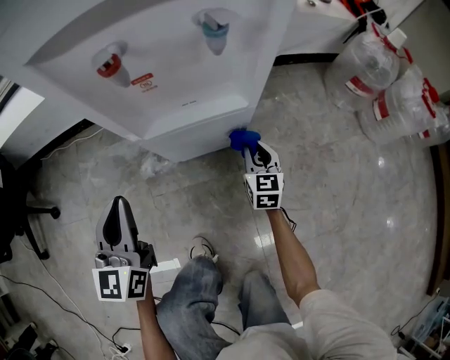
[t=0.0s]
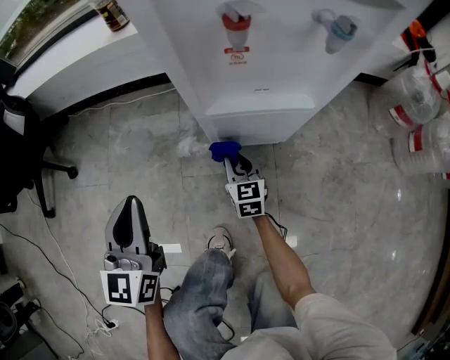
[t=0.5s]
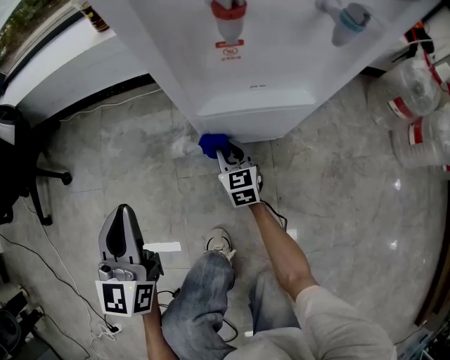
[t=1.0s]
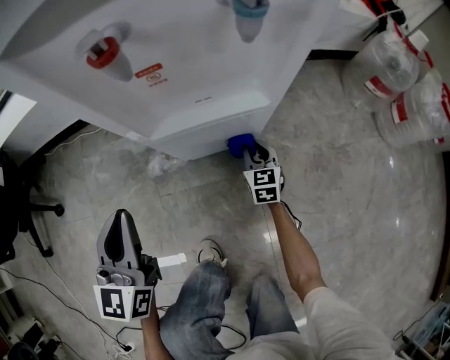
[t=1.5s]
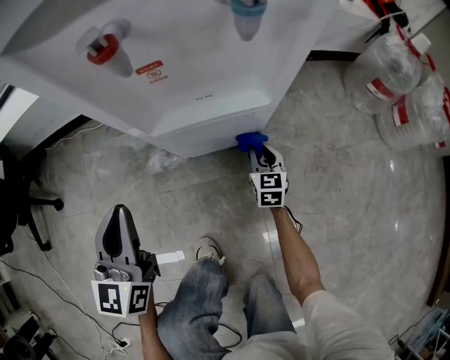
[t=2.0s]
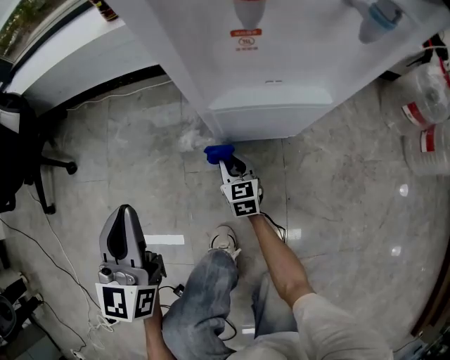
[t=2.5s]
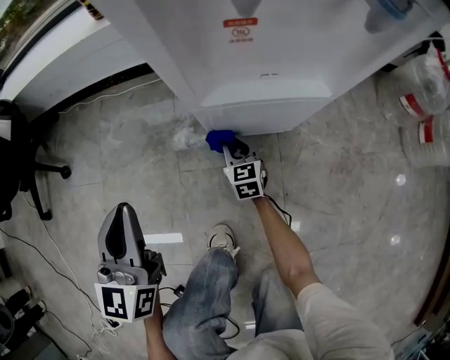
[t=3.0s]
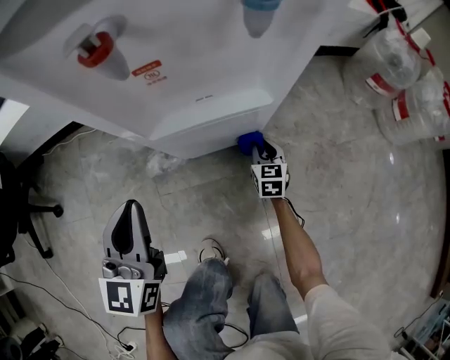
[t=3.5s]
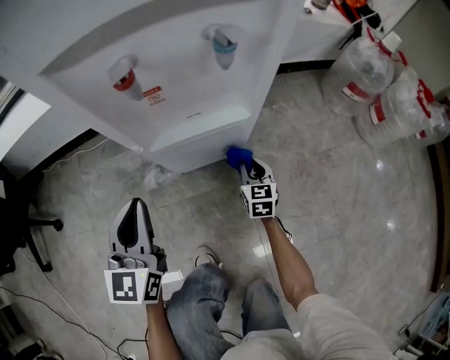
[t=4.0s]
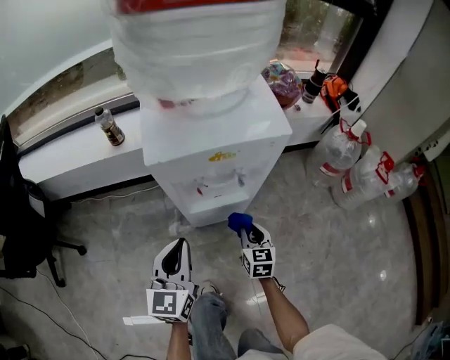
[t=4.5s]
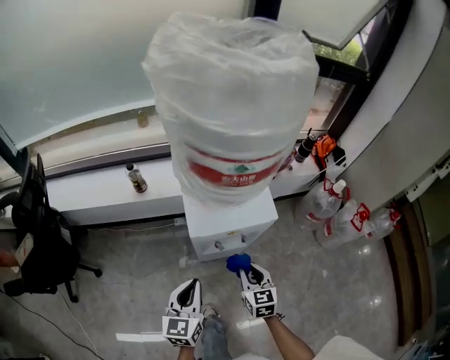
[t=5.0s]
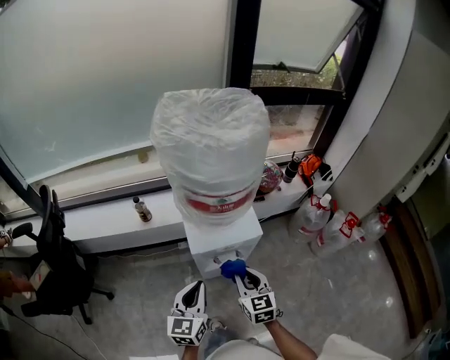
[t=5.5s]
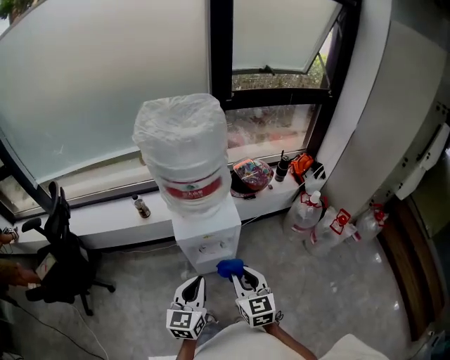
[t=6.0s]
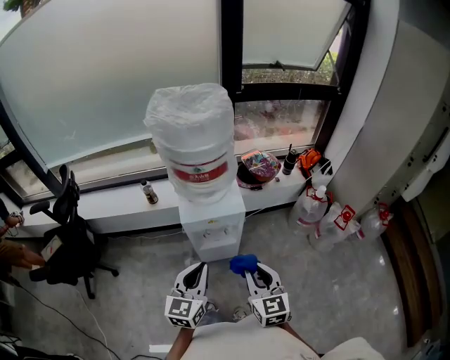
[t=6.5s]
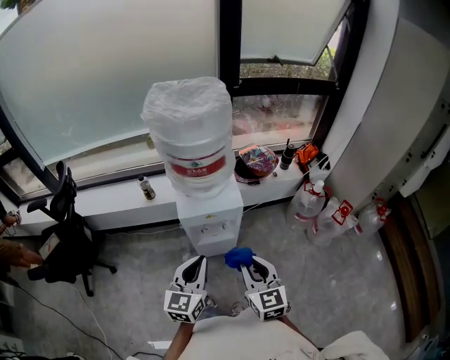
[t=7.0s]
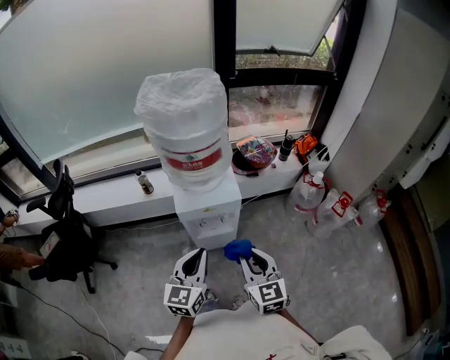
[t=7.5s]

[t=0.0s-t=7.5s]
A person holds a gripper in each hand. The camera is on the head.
t=0.0s to t=2.0s: The right gripper moves downward, roughly 5 cm, and goes to the left and returns, about 20 cm each way. The left gripper moves some 10 cm to the left and comes back.
t=2.0s to t=4.0s: The right gripper reaches about 25 cm to the left, then returns; the left gripper moves approximately 10 cm to the left and comes back.
t=4.0s to t=5.5s: The two grippers go approximately 60 cm upward.
t=5.5s to t=7.5s: The right gripper heads backward, upward and to the right, covering roughly 20 cm; the left gripper goes about 15 cm to the right, backward and upward.

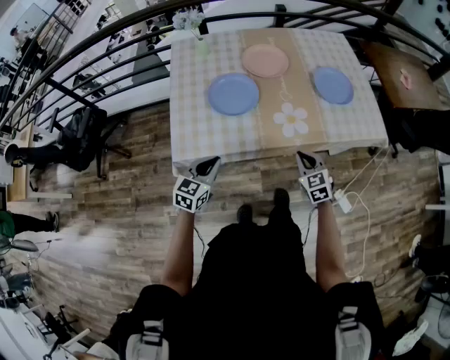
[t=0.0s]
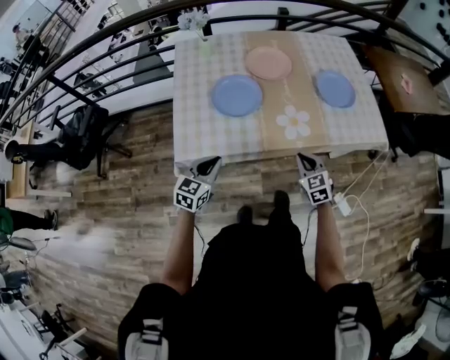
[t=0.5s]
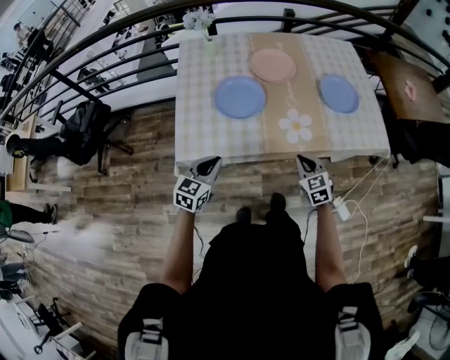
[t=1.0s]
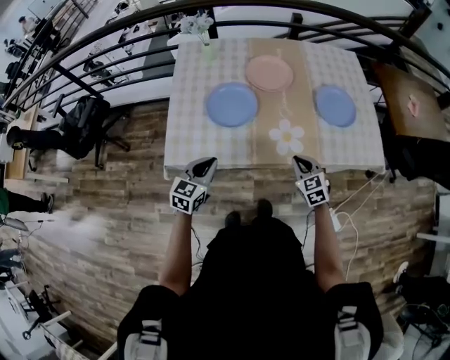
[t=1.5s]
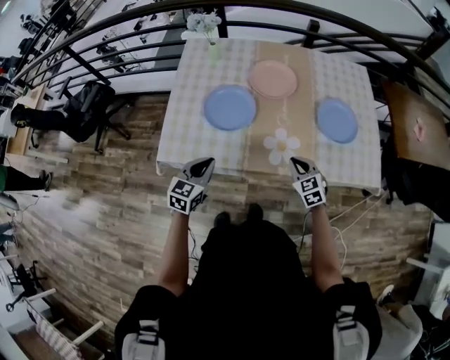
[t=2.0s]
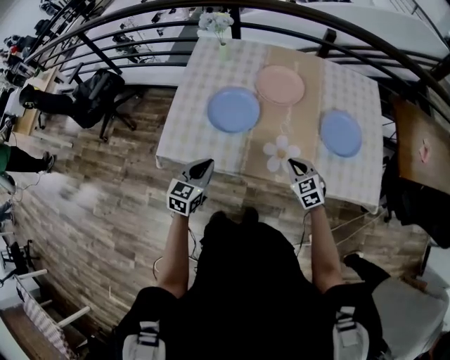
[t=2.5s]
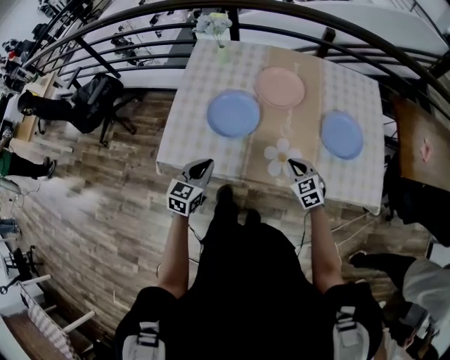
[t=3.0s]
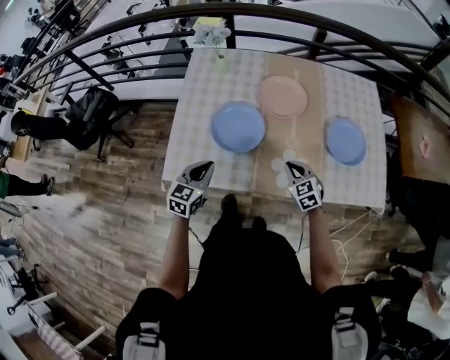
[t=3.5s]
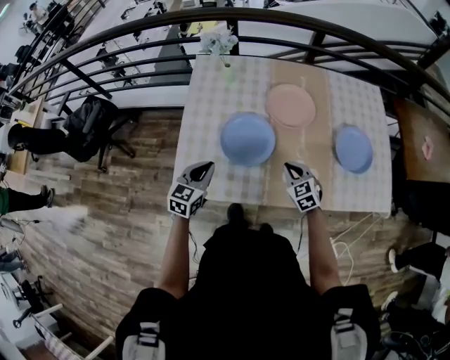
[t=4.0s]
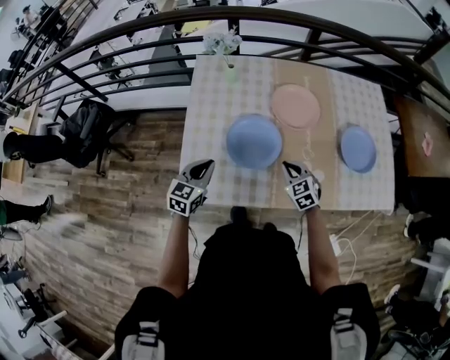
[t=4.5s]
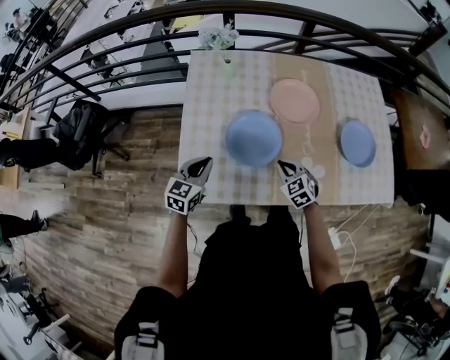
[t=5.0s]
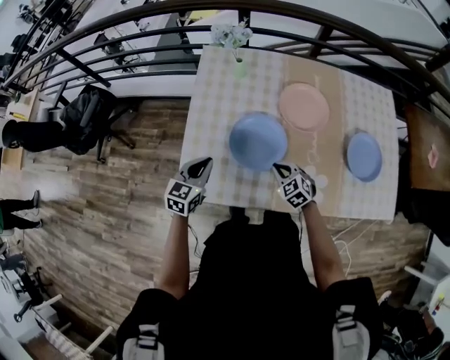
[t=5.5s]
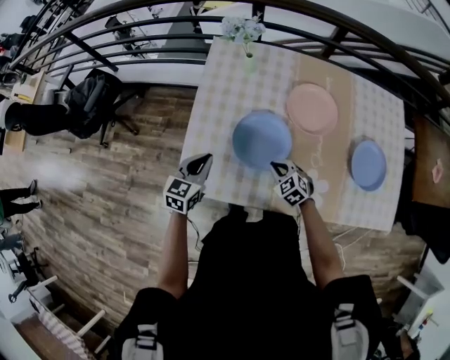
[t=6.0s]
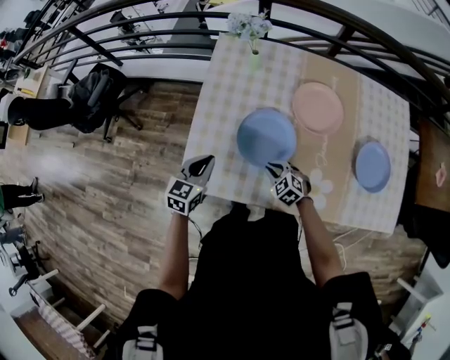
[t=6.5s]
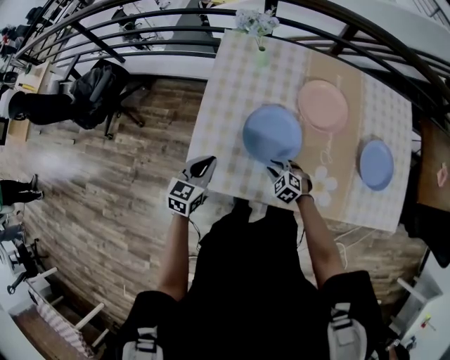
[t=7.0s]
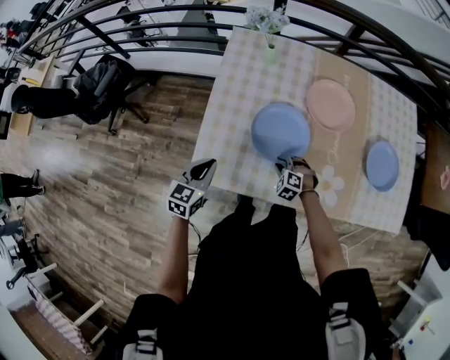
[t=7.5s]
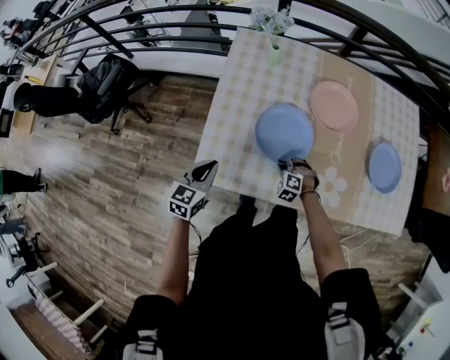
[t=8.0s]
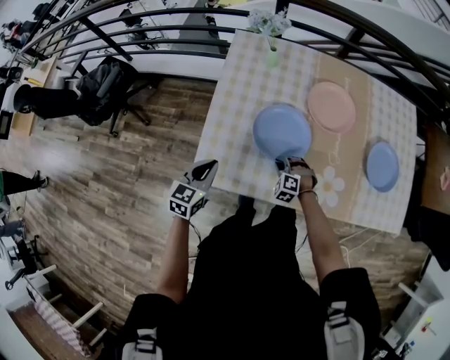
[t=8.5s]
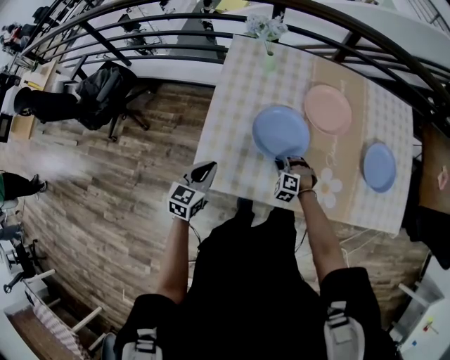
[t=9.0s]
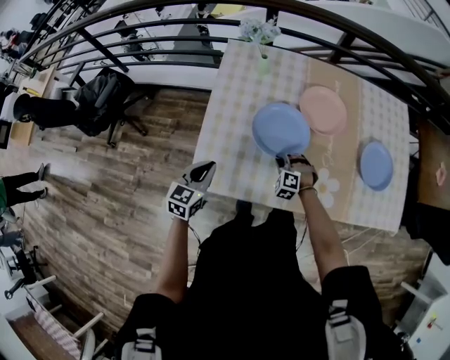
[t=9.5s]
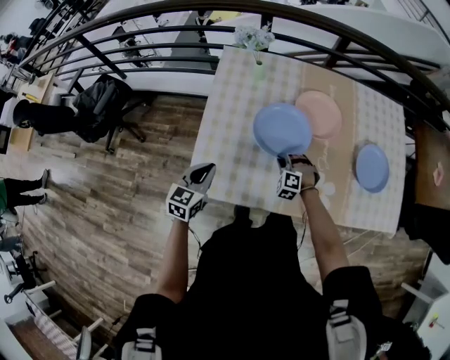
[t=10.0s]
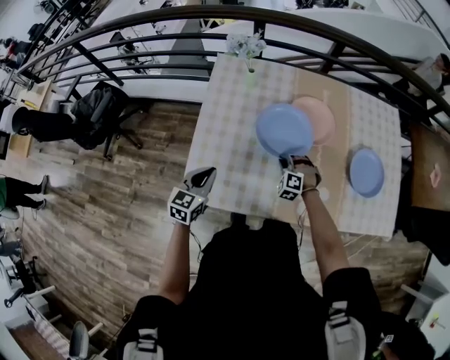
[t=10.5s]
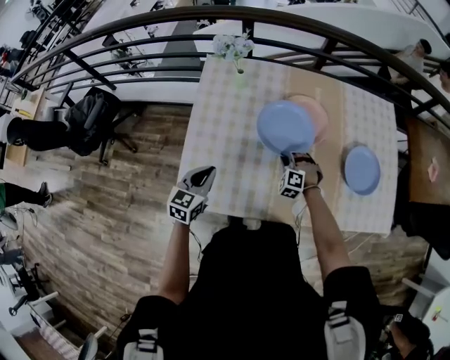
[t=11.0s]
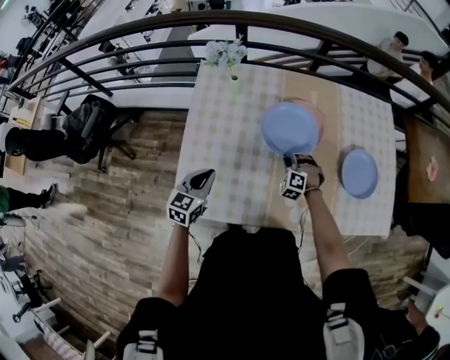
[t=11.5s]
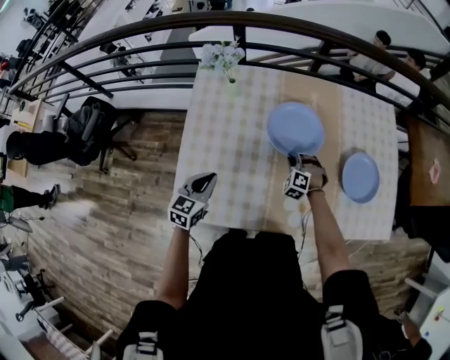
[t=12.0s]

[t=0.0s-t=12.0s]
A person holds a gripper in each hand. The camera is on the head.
t=0.0s to t=2.0s: The right gripper travels forward by about 10 cm; the left gripper goes about 10 cm forward and to the right.
t=2.0s to t=4.0s: Both grippers move forward and to the left, some 20 cm.
t=4.0s to t=6.0s: The left gripper goes roughly 5 cm to the left, while the right gripper travels to the left and downward by some 10 cm, and rotates about 20 degrees.
t=6.0s to t=8.0s: The right gripper is displaced downward by about 10 cm, and turns by approximately 30 degrees; the left gripper heads to the left and backward, covering roughly 10 cm.
t=8.0s to t=10.0s: The right gripper goes approximately 10 cm upward and forward.
t=10.0s to t=12.0s: Both grippers travel together forward and to the right, roughly 15 cm.

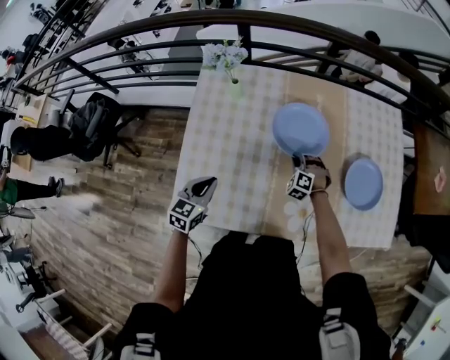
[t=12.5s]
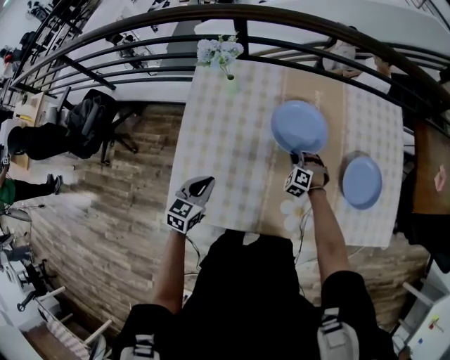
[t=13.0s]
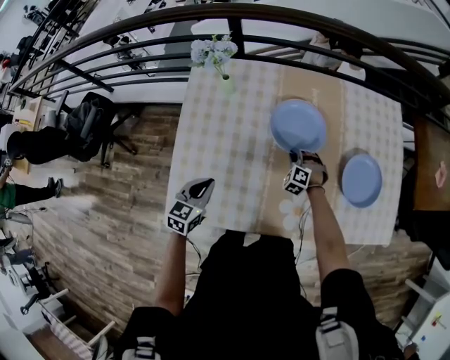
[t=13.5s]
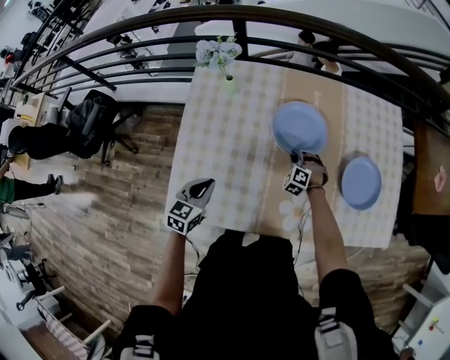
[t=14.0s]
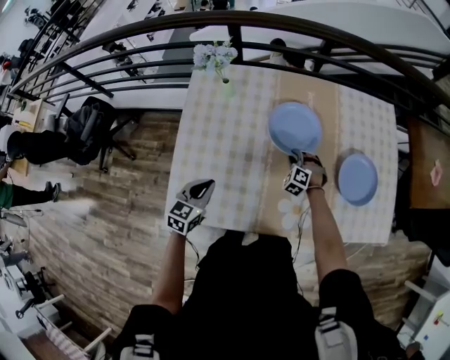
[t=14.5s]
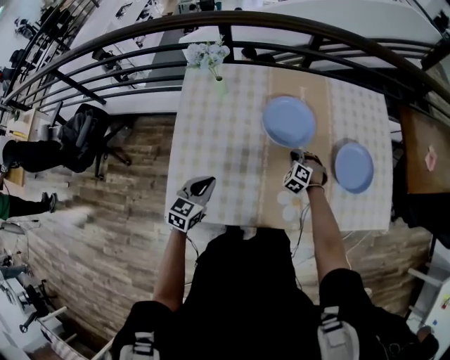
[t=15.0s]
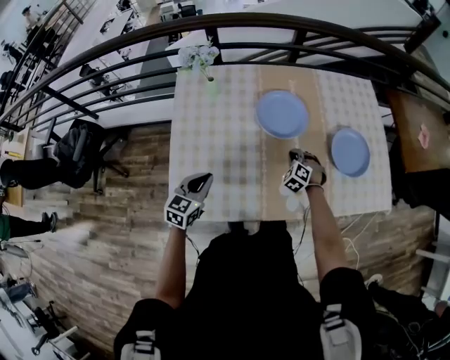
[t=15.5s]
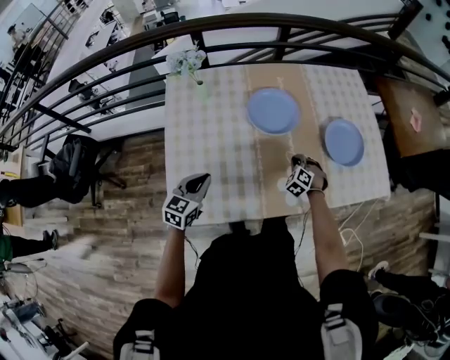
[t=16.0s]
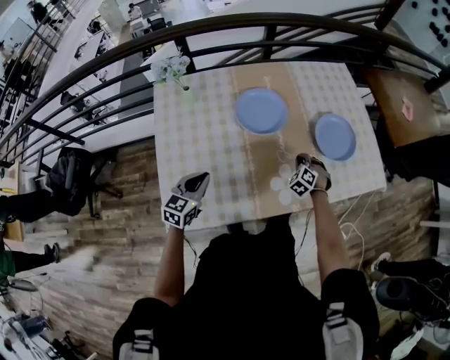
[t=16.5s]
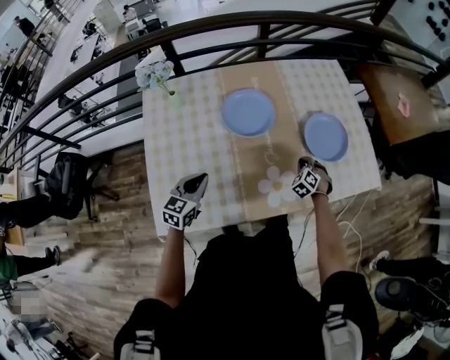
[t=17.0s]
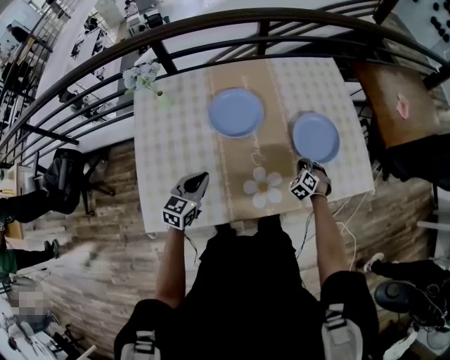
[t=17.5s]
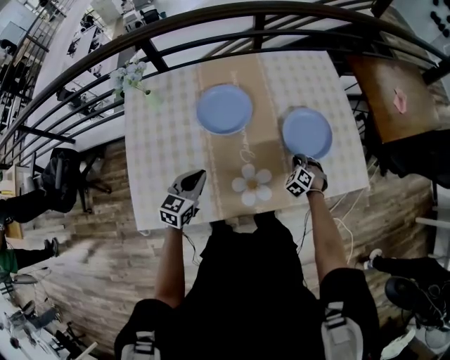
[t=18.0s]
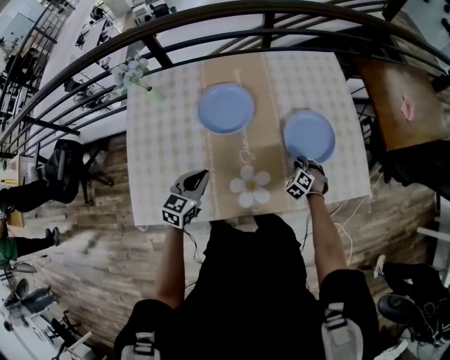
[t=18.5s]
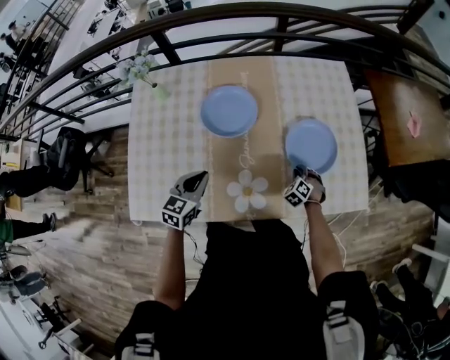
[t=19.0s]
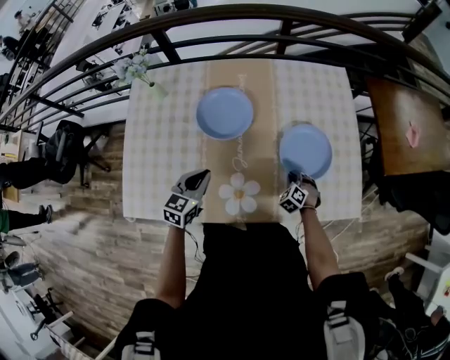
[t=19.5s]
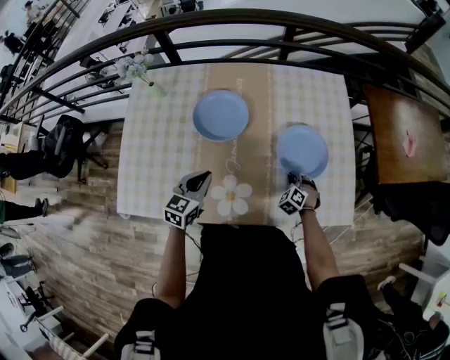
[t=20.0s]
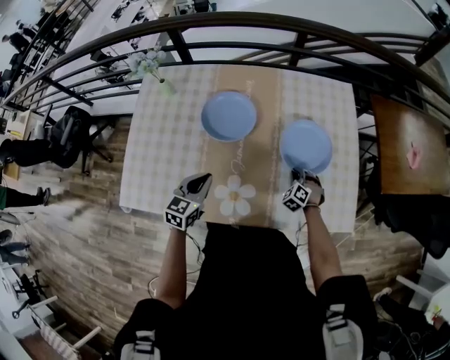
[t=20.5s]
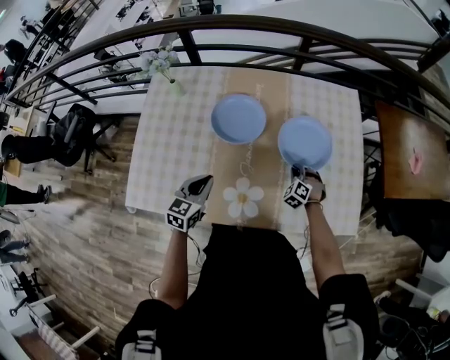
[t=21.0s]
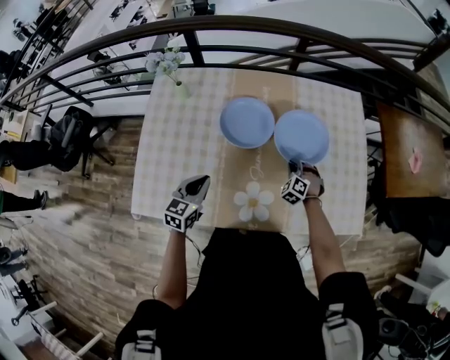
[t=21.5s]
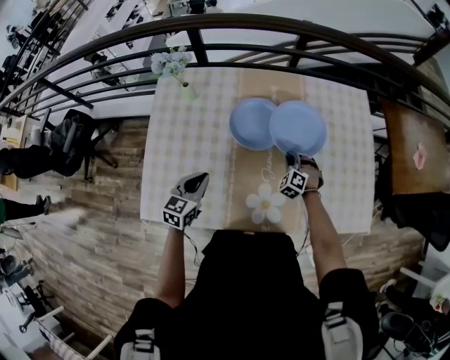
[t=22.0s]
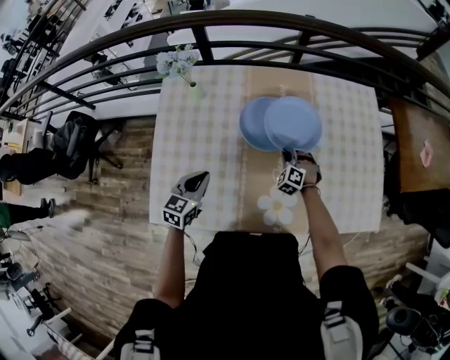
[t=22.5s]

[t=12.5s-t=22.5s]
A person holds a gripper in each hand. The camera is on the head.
t=12.5s to t=14.5s: The right gripper opens its fingers.
t=14.5s to t=16.5s: The right gripper shifts about 15 cm to the right and backward, changes its angle by some 30 degrees, and closes up.
t=16.5s to t=18.5s: The two grippers go about 20 cm to the right and forward.
t=18.5s to t=20.5s: The left gripper goes approximately 5 cm to the right. The right gripper travels forward by about 5 cm.
t=20.5s to t=22.5s: Both grippers travel together to the left, roughly 25 cm.
